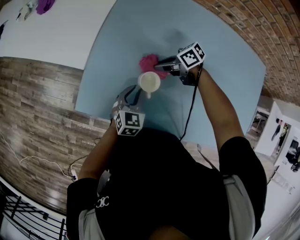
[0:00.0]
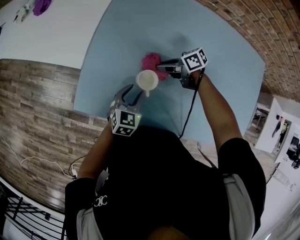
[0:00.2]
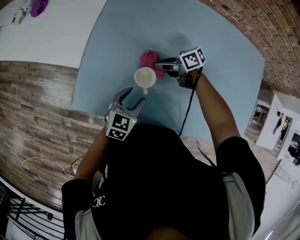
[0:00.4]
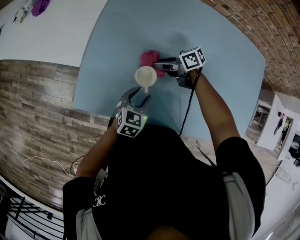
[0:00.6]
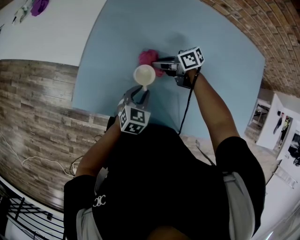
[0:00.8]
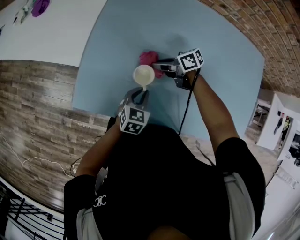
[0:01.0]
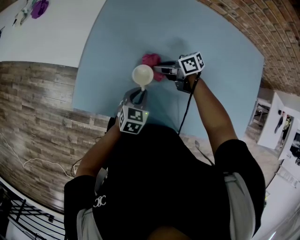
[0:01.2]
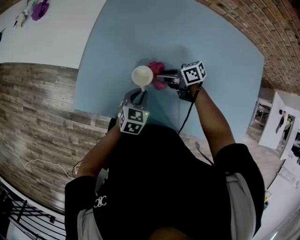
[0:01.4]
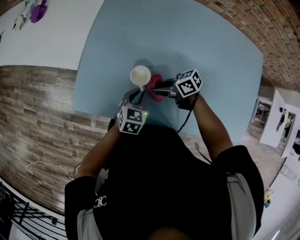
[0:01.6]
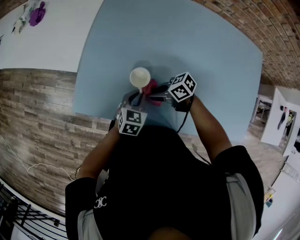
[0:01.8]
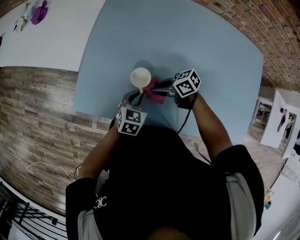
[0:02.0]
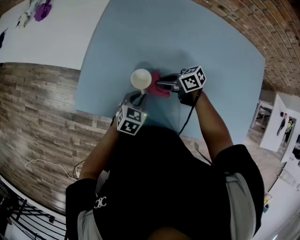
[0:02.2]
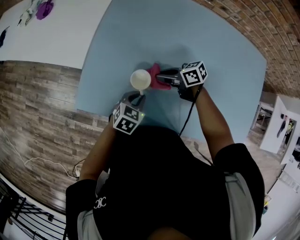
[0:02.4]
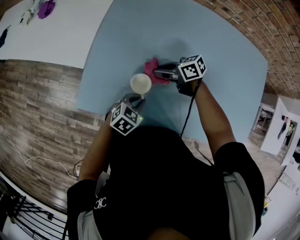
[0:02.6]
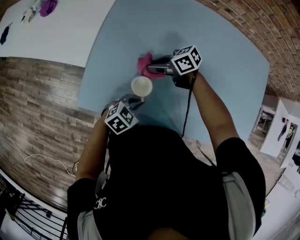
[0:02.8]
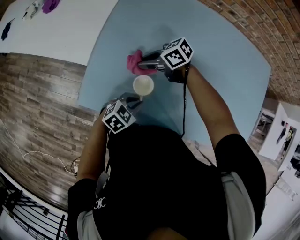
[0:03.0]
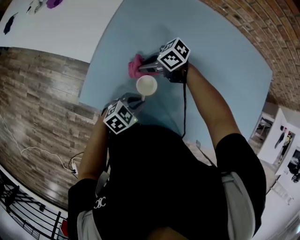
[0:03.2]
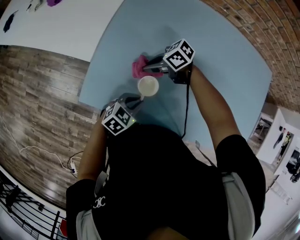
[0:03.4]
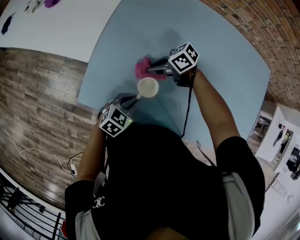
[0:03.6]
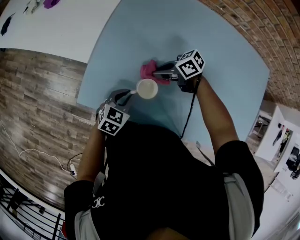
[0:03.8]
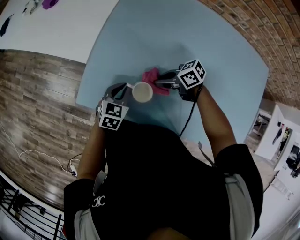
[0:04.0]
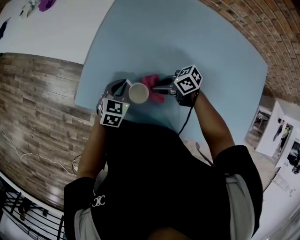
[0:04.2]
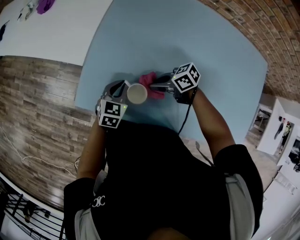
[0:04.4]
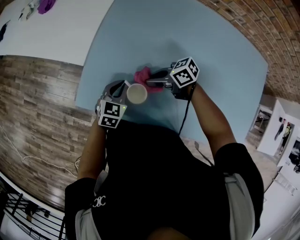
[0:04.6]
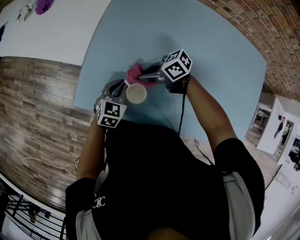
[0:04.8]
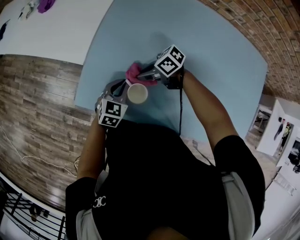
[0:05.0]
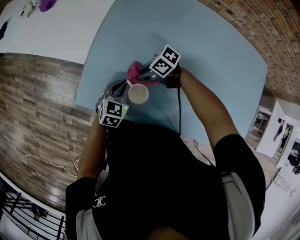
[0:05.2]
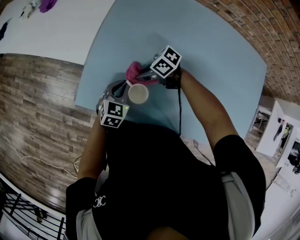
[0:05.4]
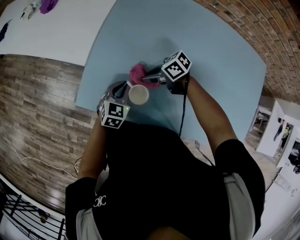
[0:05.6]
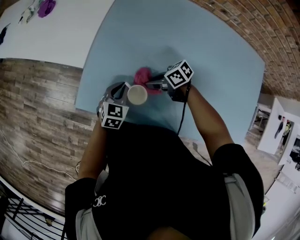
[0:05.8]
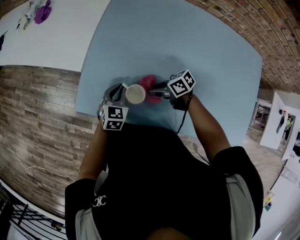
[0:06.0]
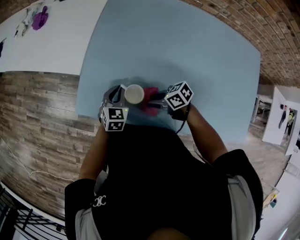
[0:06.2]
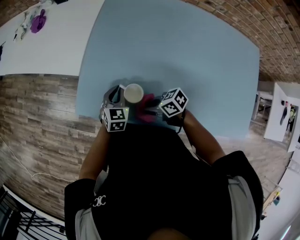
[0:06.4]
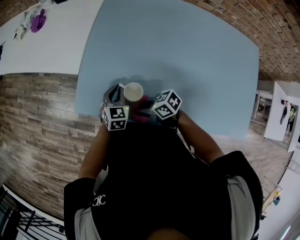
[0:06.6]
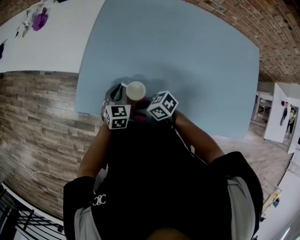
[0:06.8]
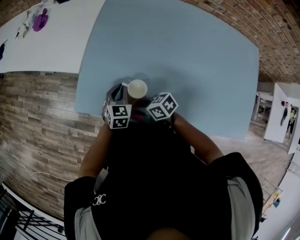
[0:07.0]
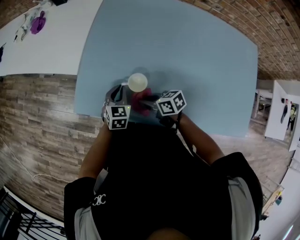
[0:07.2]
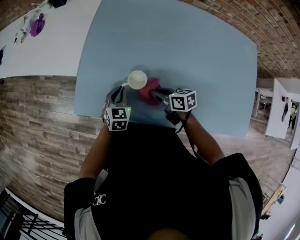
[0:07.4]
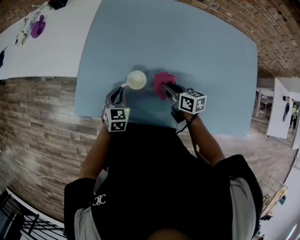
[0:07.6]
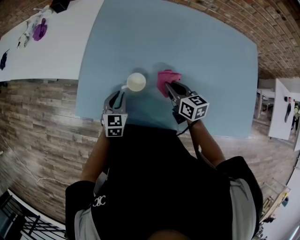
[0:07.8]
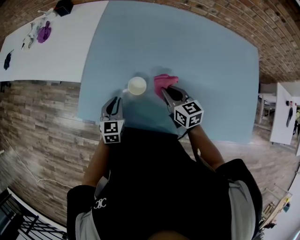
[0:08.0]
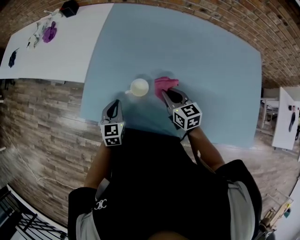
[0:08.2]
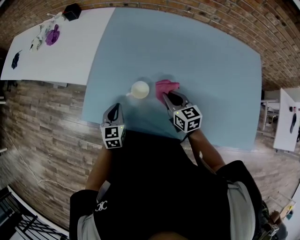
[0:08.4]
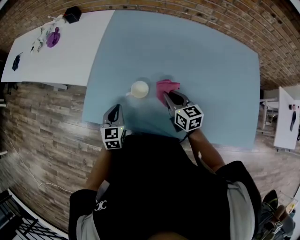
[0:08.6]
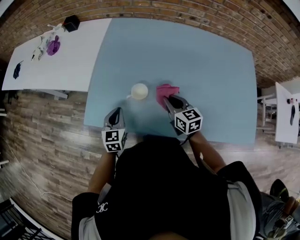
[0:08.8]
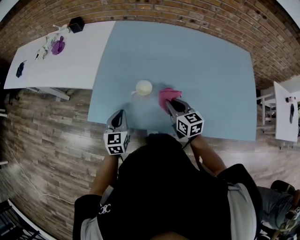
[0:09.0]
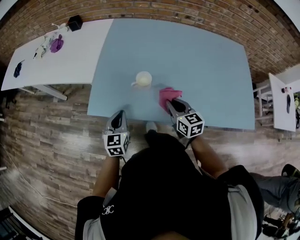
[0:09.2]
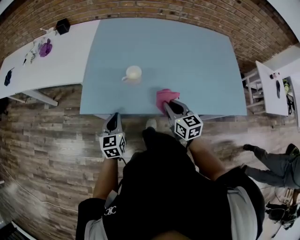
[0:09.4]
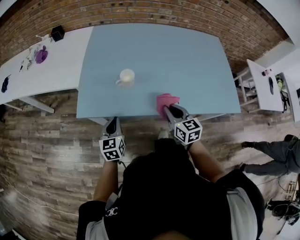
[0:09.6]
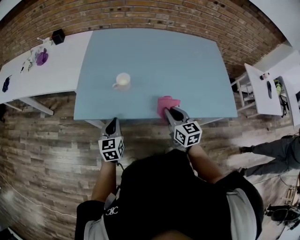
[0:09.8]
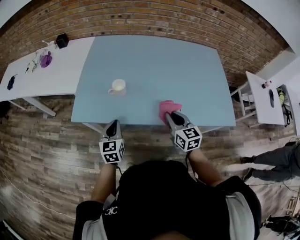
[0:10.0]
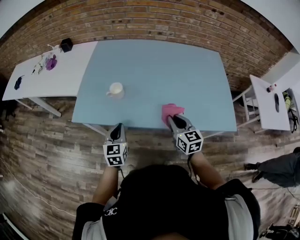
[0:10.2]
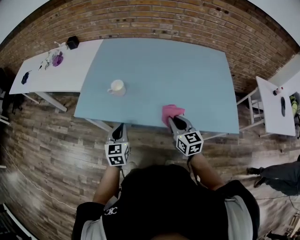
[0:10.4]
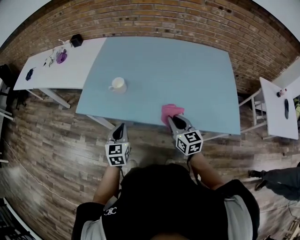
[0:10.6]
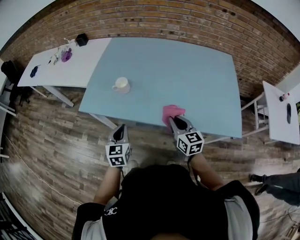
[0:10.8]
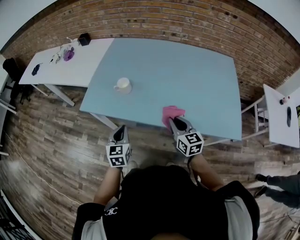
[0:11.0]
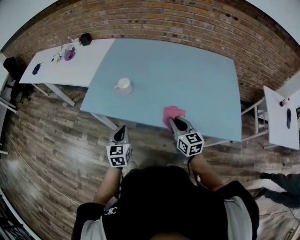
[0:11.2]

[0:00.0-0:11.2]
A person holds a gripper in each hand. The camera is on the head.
0:00.0 to 0:01.6: The right gripper changes place by roughly 15 cm; the left gripper shifts by about 5 cm, and opens and closes again.
0:01.6 to 0:03.2: The left gripper changes place by approximately 5 cm, and rotates roughly 30 degrees. Meanwhile the right gripper moves some 15 cm, and swivels about 20 degrees.
0:03.2 to 0:04.8: The left gripper moves roughly 10 cm, and turns by some 30 degrees.
0:04.8 to 0:06.4: The right gripper shifts by about 15 cm.
0:06.4 to 0:08.0: The right gripper ends up some 15 cm from where it was, and swivels approximately 50 degrees.
0:08.0 to 0:09.6: The two grippers go about 15 cm backward.
0:09.6 to 0:11.2: The right gripper shifts about 10 cm to the right, while the left gripper heads to the right and backward, covering approximately 15 cm.

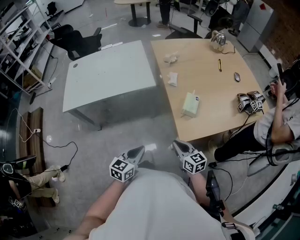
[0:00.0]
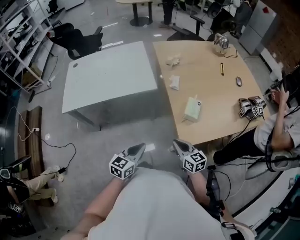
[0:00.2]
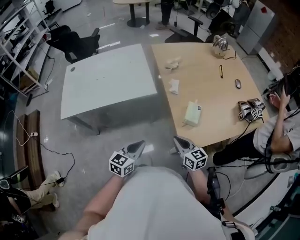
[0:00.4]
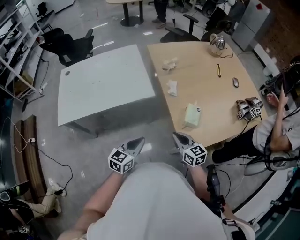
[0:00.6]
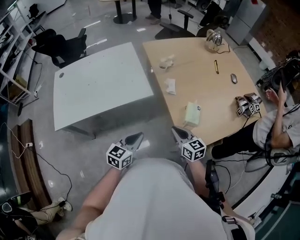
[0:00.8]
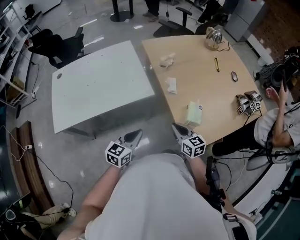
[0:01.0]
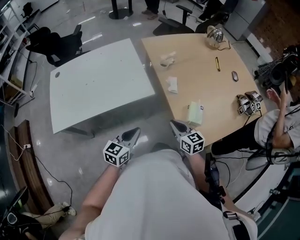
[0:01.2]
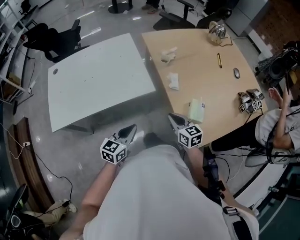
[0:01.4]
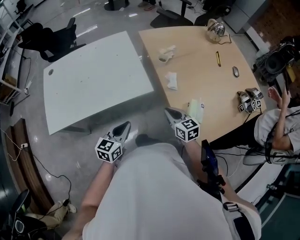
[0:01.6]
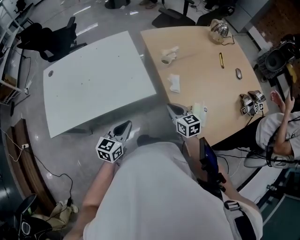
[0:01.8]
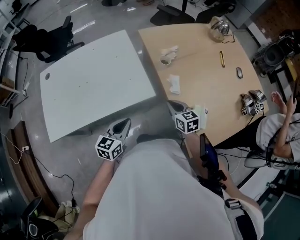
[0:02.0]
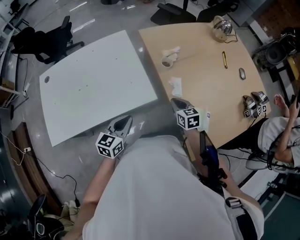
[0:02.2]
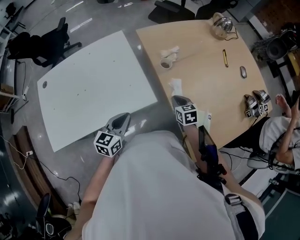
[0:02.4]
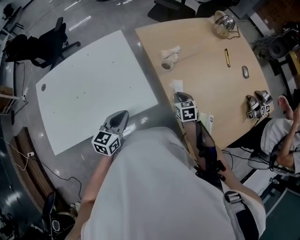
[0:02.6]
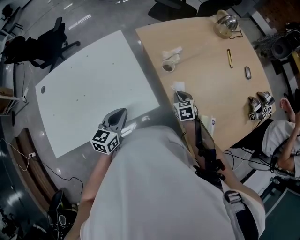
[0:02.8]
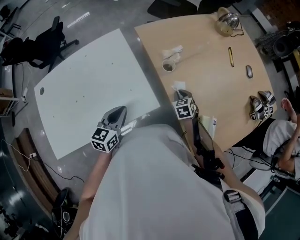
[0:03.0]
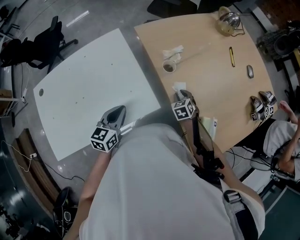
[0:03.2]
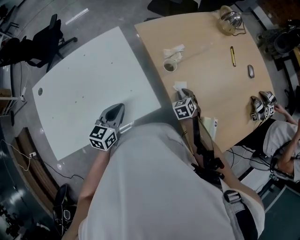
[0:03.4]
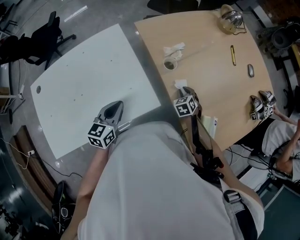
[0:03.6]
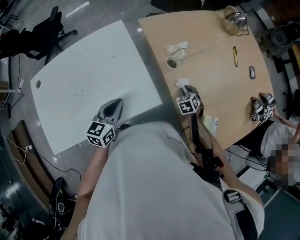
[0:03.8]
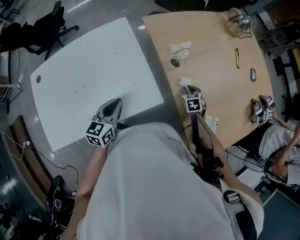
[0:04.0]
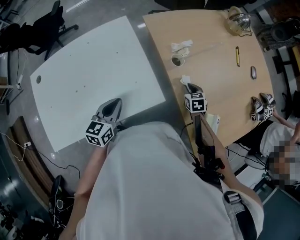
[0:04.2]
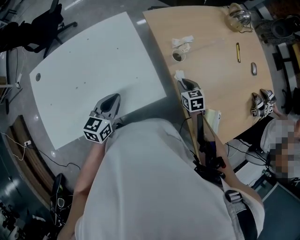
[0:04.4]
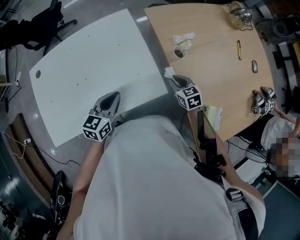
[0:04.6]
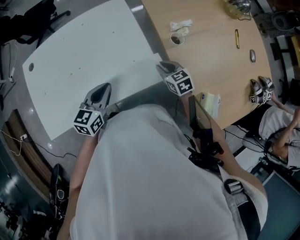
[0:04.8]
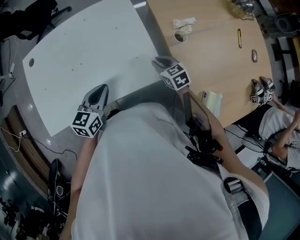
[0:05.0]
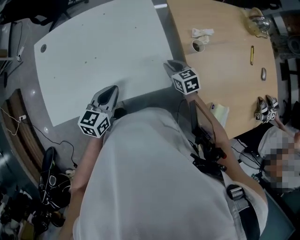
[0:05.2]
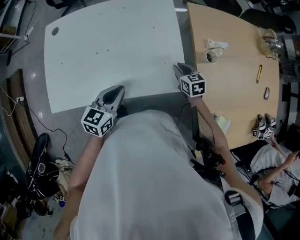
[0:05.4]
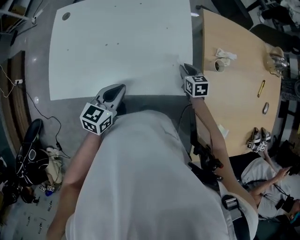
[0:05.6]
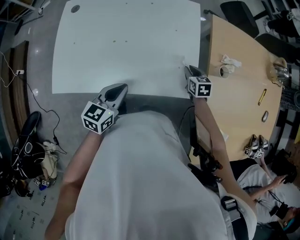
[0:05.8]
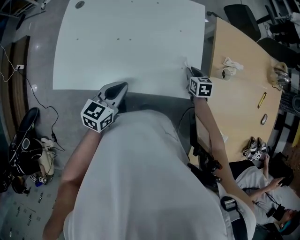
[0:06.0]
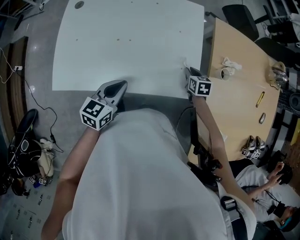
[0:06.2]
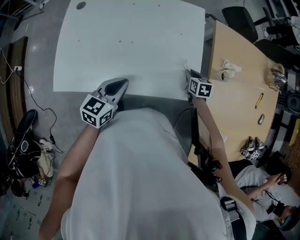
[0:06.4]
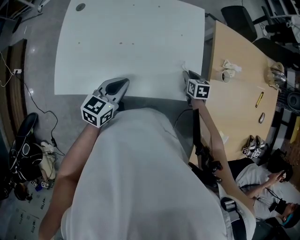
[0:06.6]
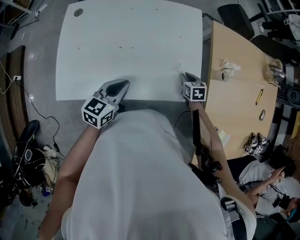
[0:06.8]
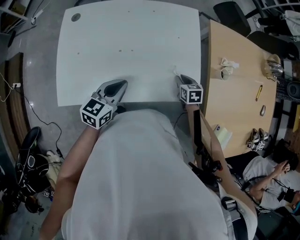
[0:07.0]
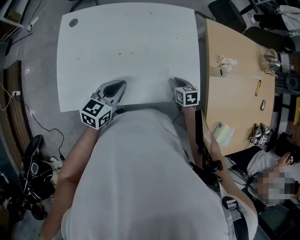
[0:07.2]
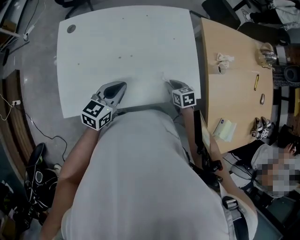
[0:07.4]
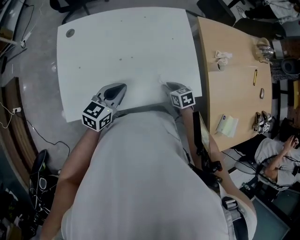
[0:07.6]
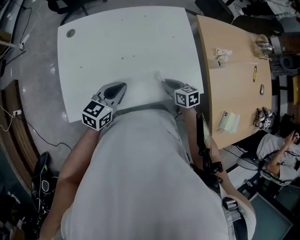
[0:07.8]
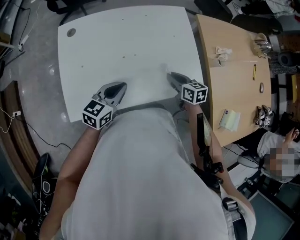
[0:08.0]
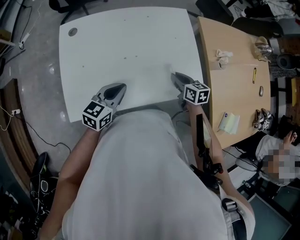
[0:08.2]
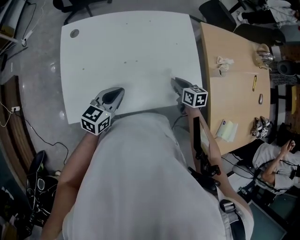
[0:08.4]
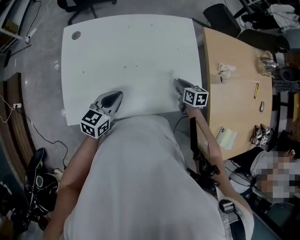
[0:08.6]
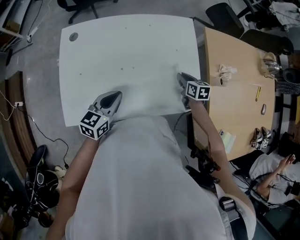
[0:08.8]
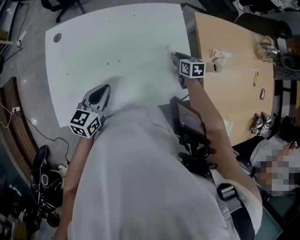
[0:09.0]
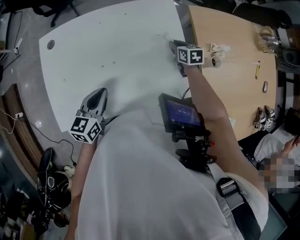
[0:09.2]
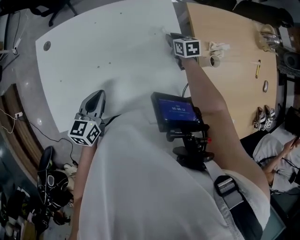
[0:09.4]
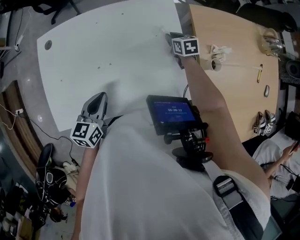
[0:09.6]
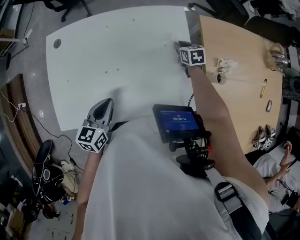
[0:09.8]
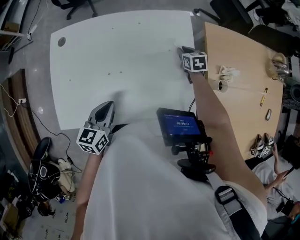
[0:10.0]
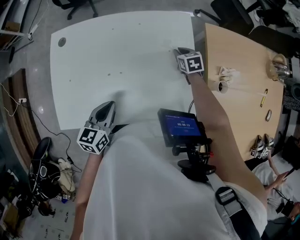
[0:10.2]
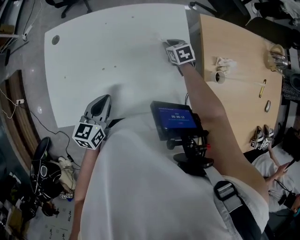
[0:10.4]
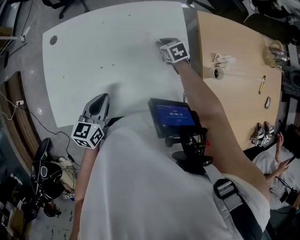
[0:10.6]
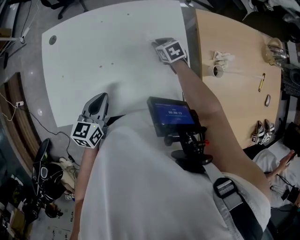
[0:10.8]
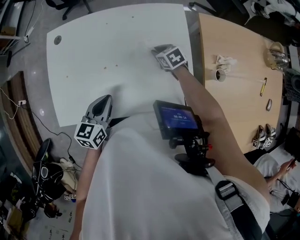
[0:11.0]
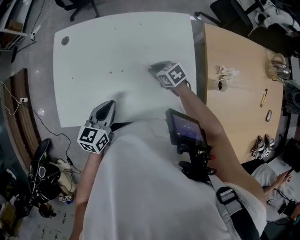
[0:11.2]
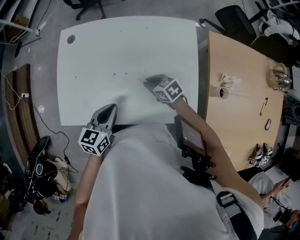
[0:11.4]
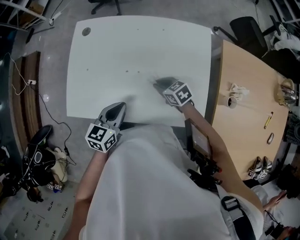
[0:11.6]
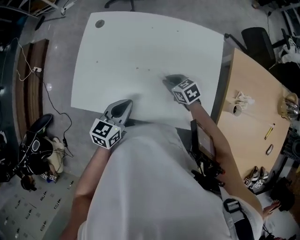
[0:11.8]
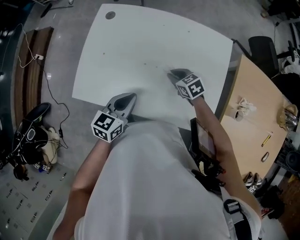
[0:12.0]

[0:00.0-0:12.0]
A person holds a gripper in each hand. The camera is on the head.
0:00.0 to 0:01.6: The grippers both shift forward and to the left by roughly 25 cm.
0:01.6 to 0:03.0: The right gripper heads forward and downward, covering some 25 cm, and rotates approximately 40 degrees; the left gripper travels forward by approximately 20 cm.
0:03.0 to 0:04.4: The left gripper goes approximately 5 cm to the left.
0:04.4 to 0:06.0: The right gripper goes roughly 15 cm to the left; the left gripper shifts roughly 15 cm to the left and backward.
0:06.0 to 0:07.6: The left gripper moves to the left, approximately 10 cm; the right gripper travels to the left and backward by some 15 cm.
0:07.6 to 0:09.0: The right gripper moves forward, approximately 20 cm.
0:09.0 to 0:10.4: The right gripper moves forward, about 10 cm, and swivels some 20 degrees.
0:10.4 to 0:12.0: The right gripper moves approximately 20 cm, and turns by roughly 30 degrees.

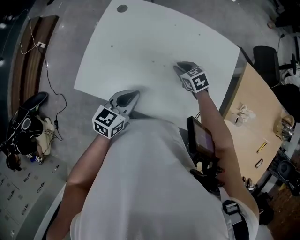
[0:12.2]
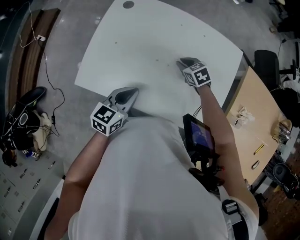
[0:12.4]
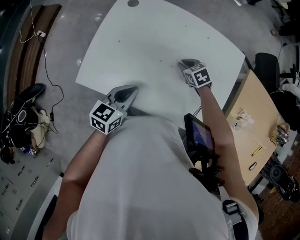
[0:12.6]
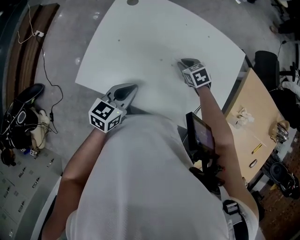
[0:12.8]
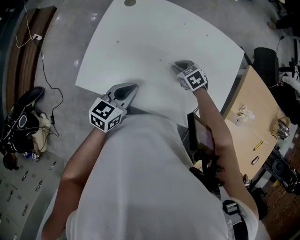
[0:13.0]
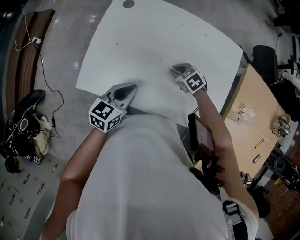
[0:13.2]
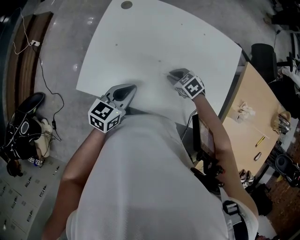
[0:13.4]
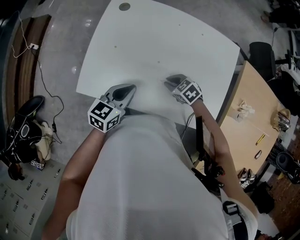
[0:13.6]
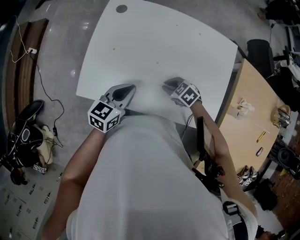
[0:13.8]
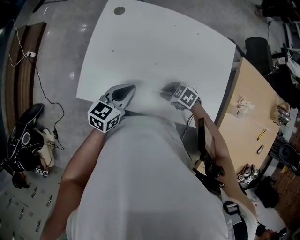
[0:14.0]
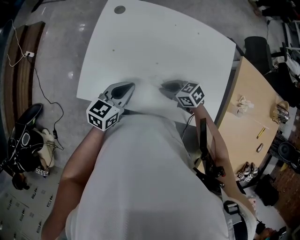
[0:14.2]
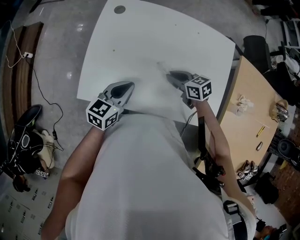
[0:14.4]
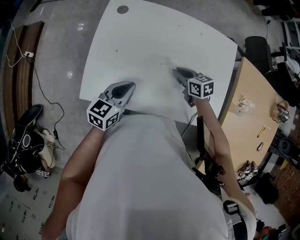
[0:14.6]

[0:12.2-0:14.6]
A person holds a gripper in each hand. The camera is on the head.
0:12.2 to 0:13.4: The right gripper moves to the left and backward, some 10 cm, while the left gripper ends up approximately 5 cm from where it was.
0:13.4 to 0:14.6: The right gripper ends up roughly 5 cm from where it was, and swivels approximately 40 degrees.
